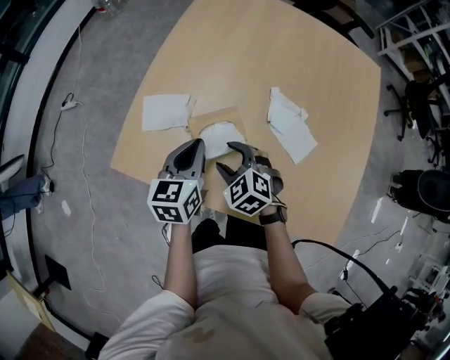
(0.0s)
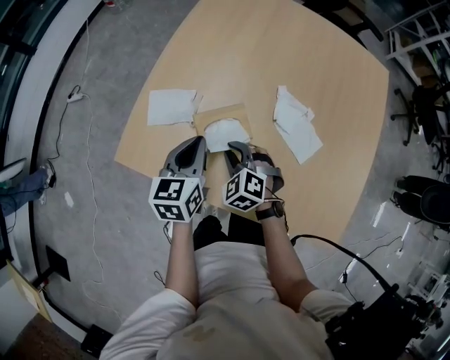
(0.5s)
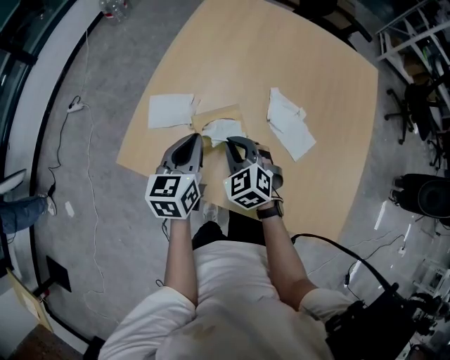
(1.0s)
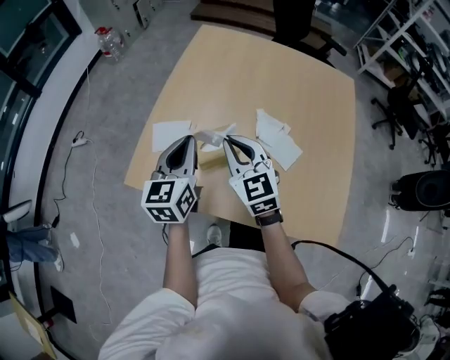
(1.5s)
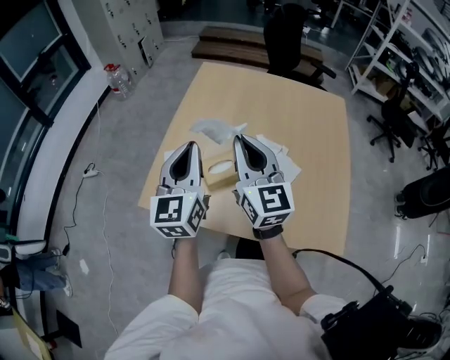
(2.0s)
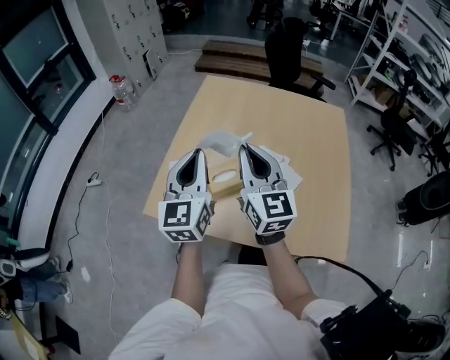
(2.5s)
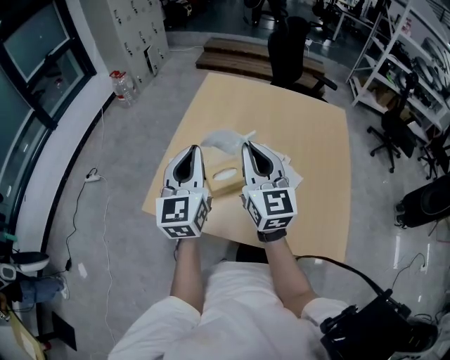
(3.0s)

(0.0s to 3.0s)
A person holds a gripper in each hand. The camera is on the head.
0.0s - 1.5s: The grippers both shift upward by approximately 15 cm. The right gripper tilts its fingers about 30 degrees upward, and closes.
1.5s - 3.0s: Both grippers travel together upward, about 15 cm. The right gripper rotates roughly 20 degrees.

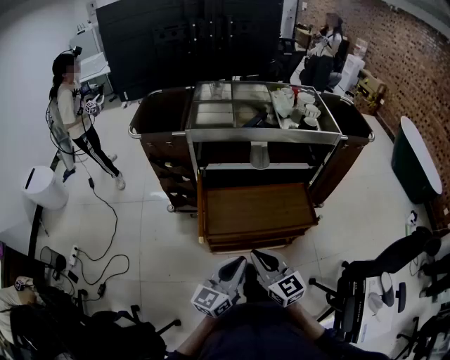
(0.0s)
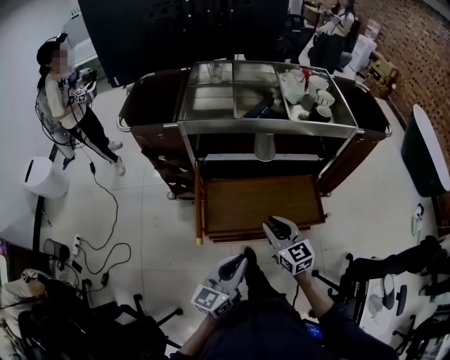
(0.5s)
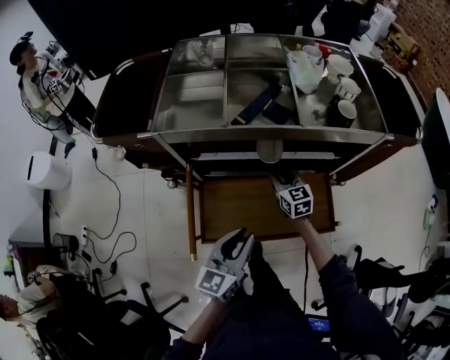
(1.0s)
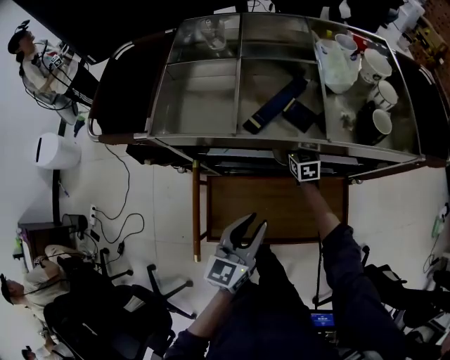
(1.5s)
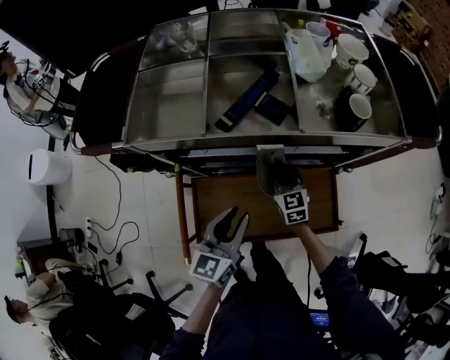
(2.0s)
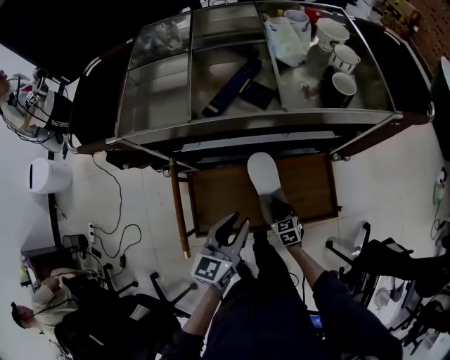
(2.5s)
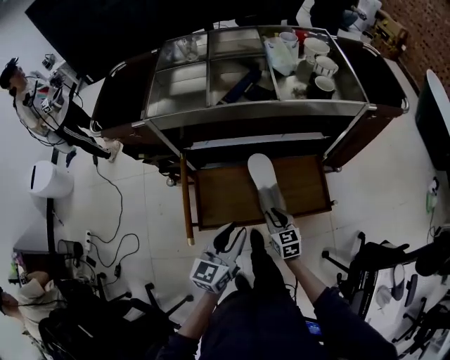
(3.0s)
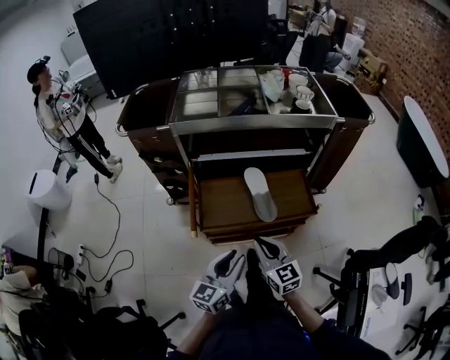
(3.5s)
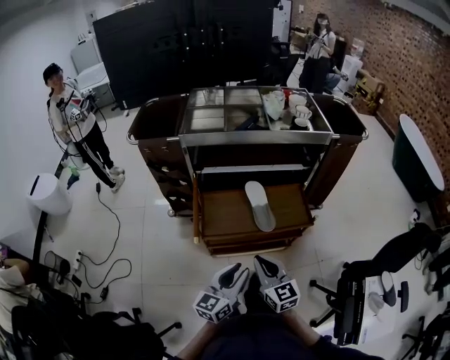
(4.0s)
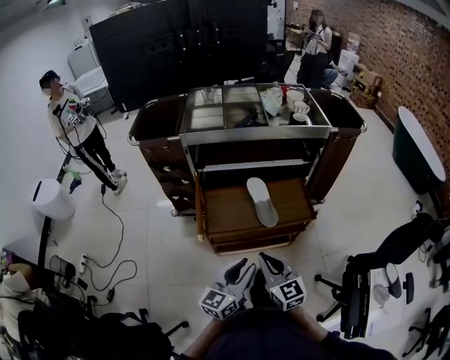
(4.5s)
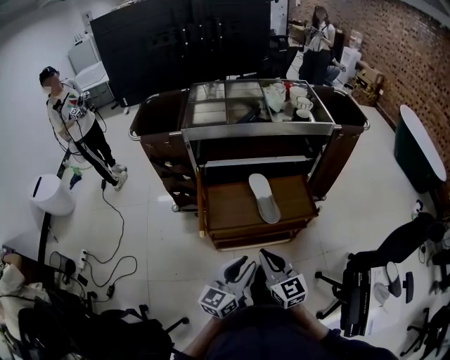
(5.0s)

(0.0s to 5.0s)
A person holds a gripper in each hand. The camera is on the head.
0.0s - 2.5s: The left gripper moves forward, roughly 30 cm, and opens its fingers; the right gripper goes roughly 50 cm downward, forward and to the right, angles its fingers downward, by roughly 40 degrees, and opens, then closes once more.
2.5s - 5.0s: The left gripper moves backward, roughly 35 cm. The right gripper travels upward and backward by some 50 cm, and points its fingers approximately 40 degrees further upward.

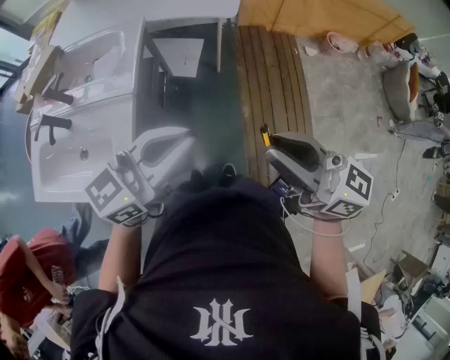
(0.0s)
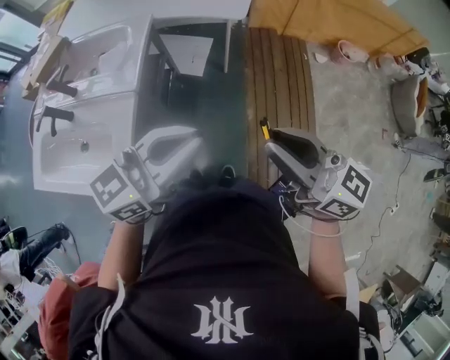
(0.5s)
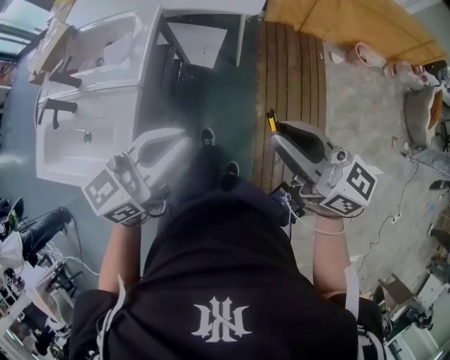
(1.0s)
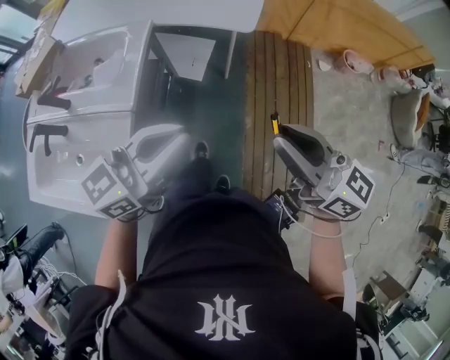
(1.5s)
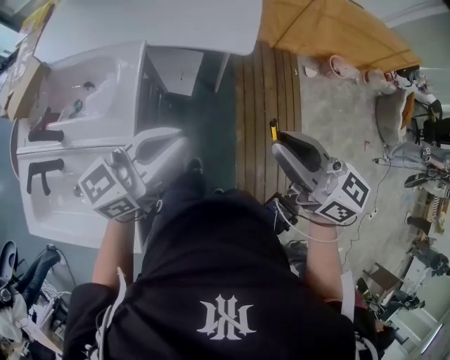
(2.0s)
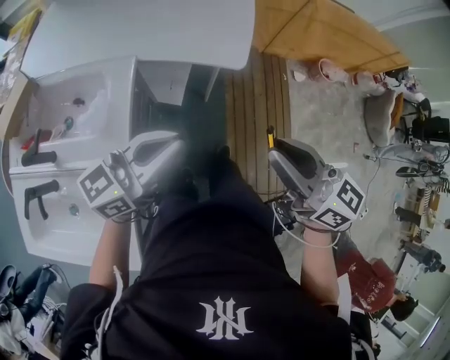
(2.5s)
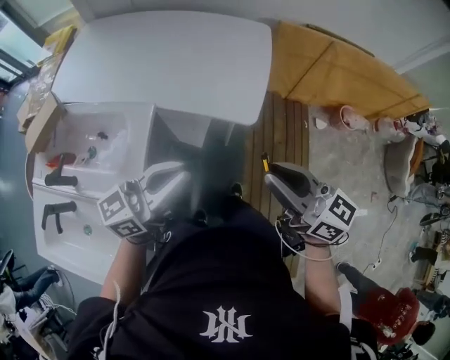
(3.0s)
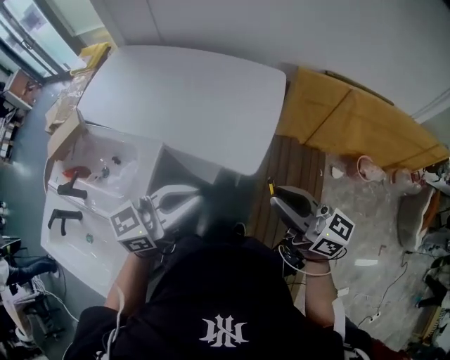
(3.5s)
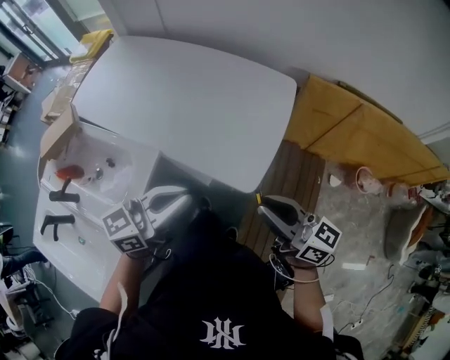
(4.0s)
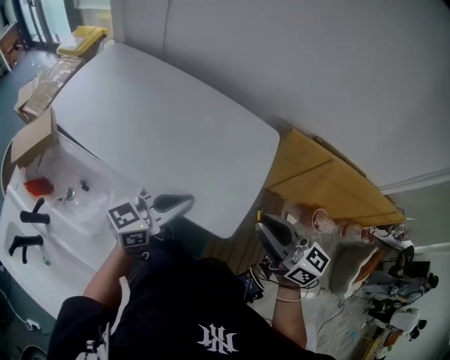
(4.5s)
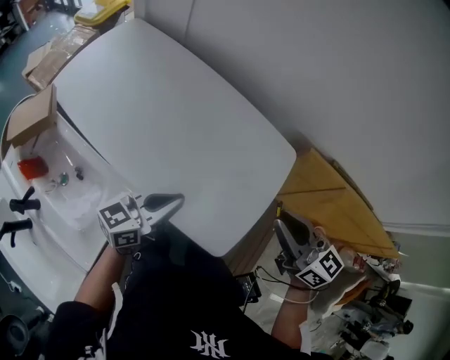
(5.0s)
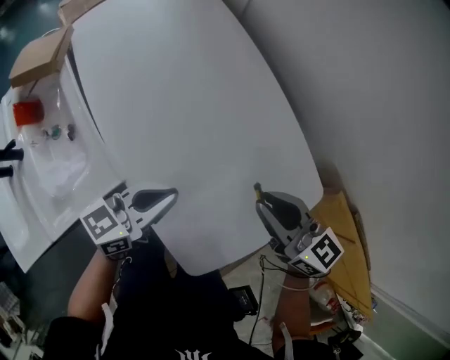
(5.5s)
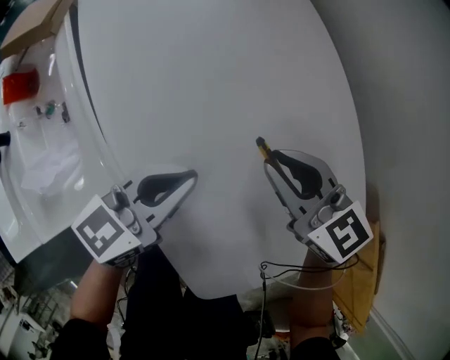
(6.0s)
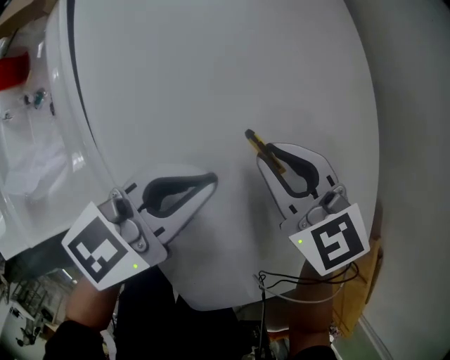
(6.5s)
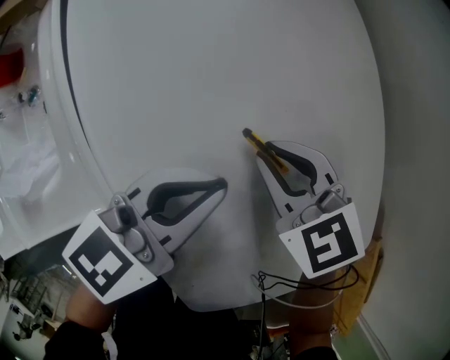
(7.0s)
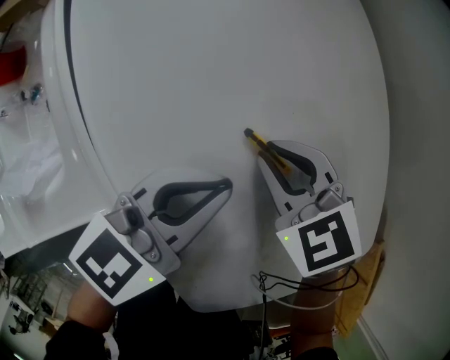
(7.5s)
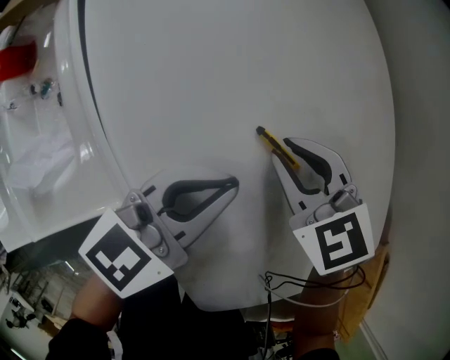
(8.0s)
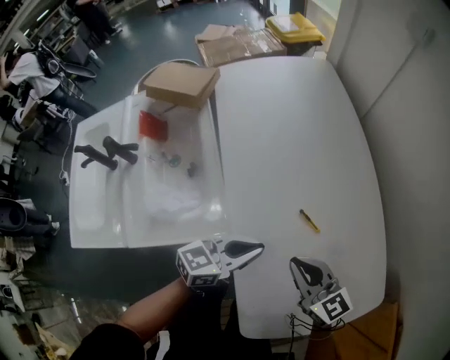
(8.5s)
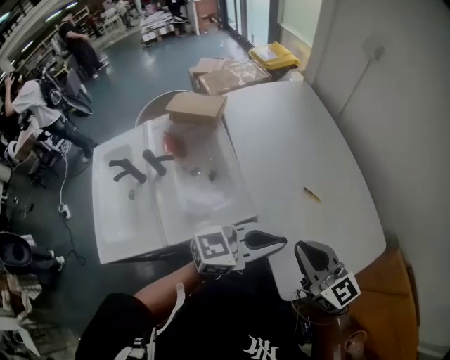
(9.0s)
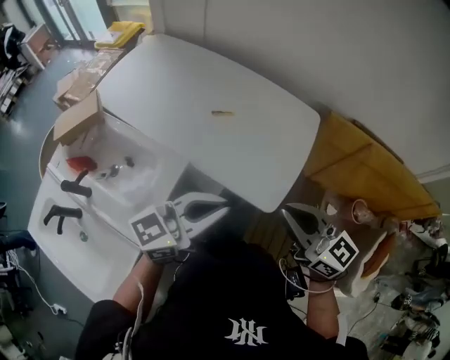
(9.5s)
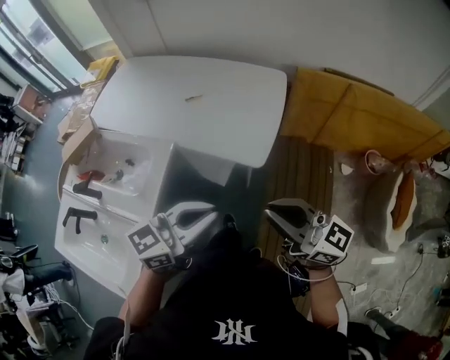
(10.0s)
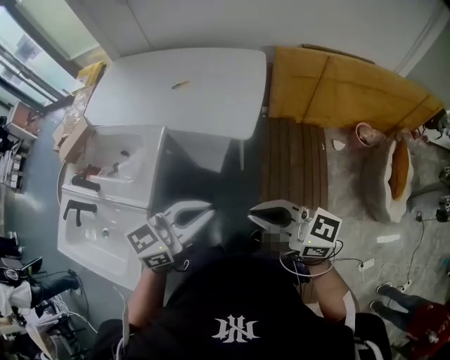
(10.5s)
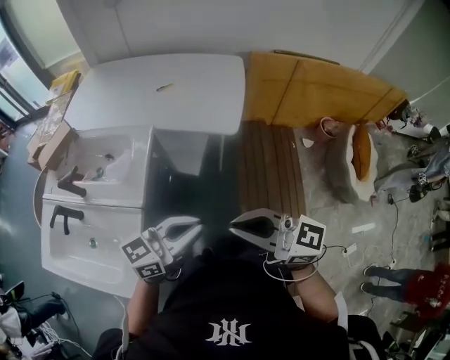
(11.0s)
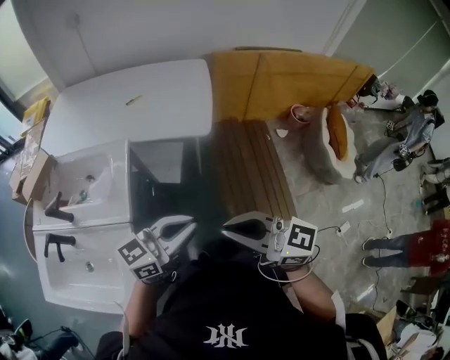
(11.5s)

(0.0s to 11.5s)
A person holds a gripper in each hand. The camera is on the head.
0.0s - 2.0s: Both grippers travel together forward, some 25 cm.
2.0s - 4.0s: Both grippers travel together forward, approximately 30 cm. The right gripper turns by approximately 20 degrees.
4.0s - 6.0s: The left gripper moves about 50 cm, and turns by about 40 degrees; the right gripper changes place by roughly 60 cm, and swivels about 50 degrees.
6.0s - 7.5s: The right gripper travels downward by some 10 cm, and rotates about 30 degrees.
7.5s - 9.5s: The two grippers travel together, some 40 cm. The left gripper rotates roughly 50 degrees, while the right gripper angles its fingers upward, by about 50 degrees.
9.5s - 11.5s: The left gripper changes place by roughly 40 cm, and turns by approximately 20 degrees. Meanwhile the right gripper ends up some 50 cm from where it was.

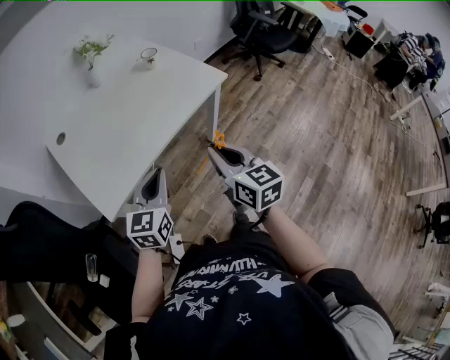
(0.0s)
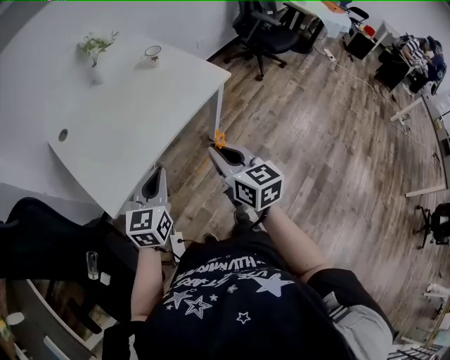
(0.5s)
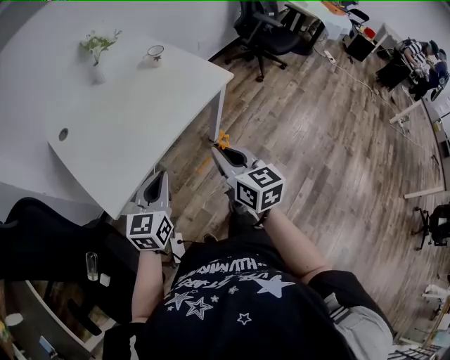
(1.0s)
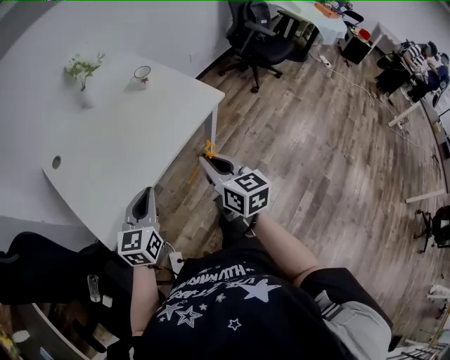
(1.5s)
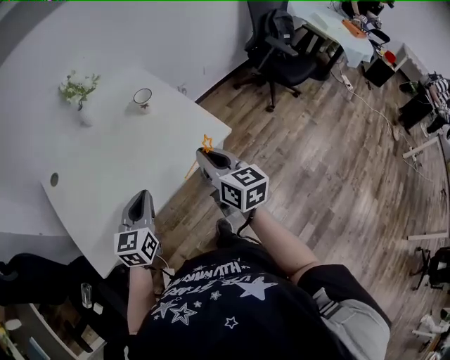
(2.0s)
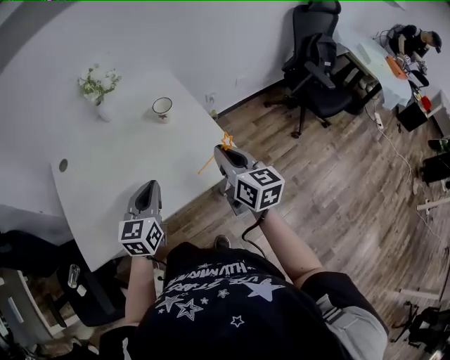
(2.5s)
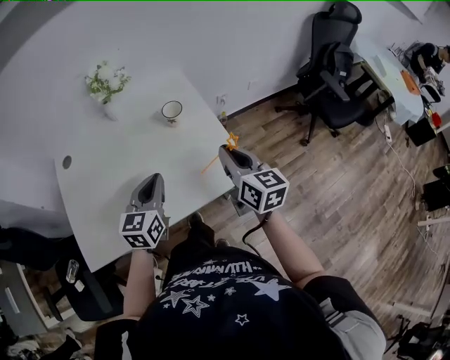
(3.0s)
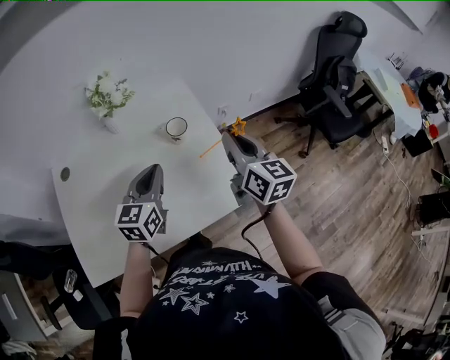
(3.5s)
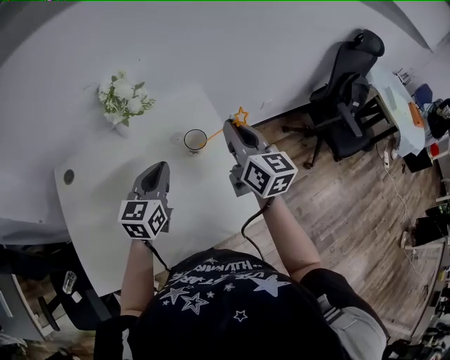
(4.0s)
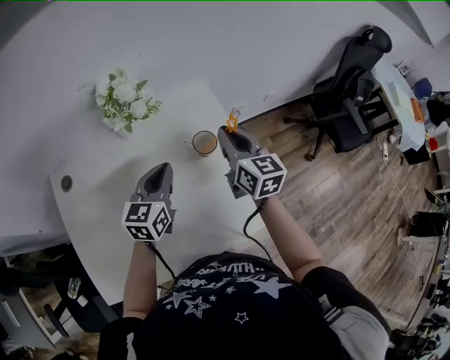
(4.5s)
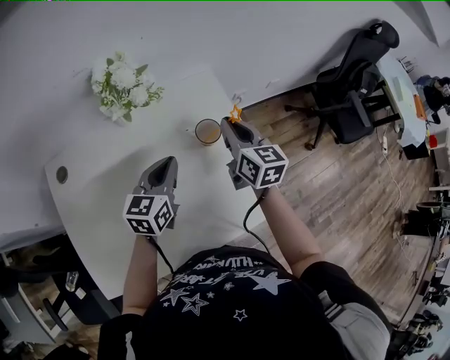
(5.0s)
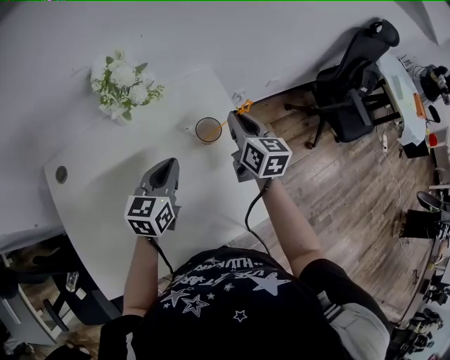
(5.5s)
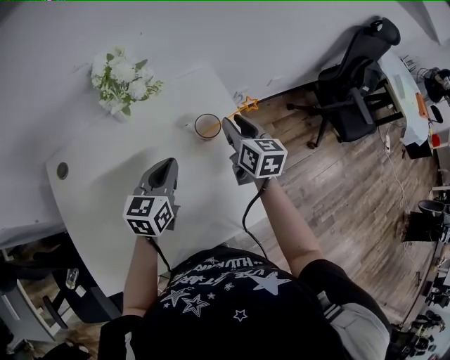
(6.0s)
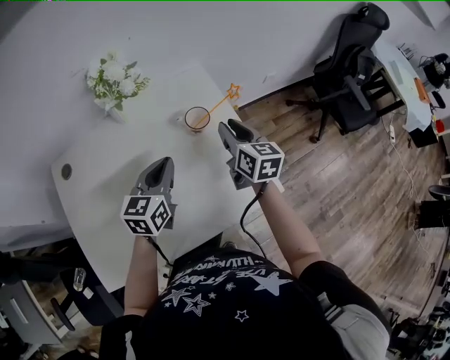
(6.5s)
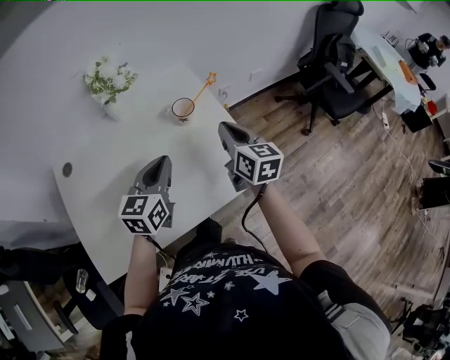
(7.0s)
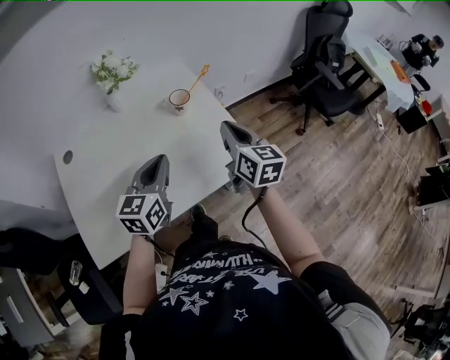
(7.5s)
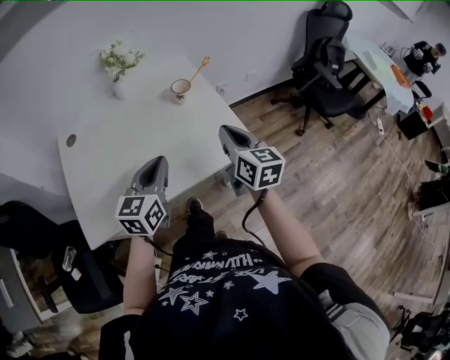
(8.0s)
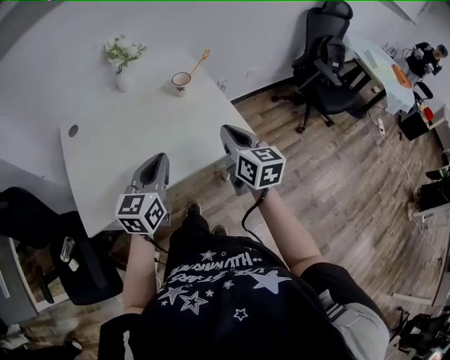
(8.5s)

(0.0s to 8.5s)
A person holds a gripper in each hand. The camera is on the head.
0.0s - 2.0s: Both grippers travel together forward, approximately 25 cm.
2.0s - 4.0s: Both grippers move forward, approximately 30 cm.
4.0s - 6.5s: The left gripper heads downward, covering roughly 5 cm. Meanwhile the right gripper shifts some 15 cm downward, and opens.
6.5s - 8.5s: Both grippers travel together backward, about 25 cm. The right gripper closes its fingers.
